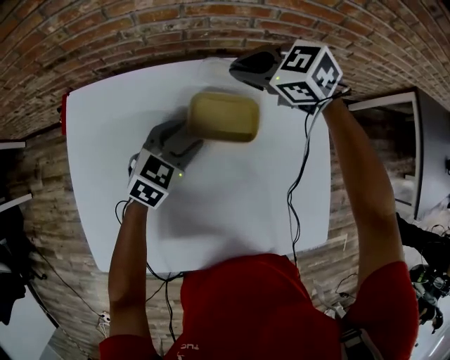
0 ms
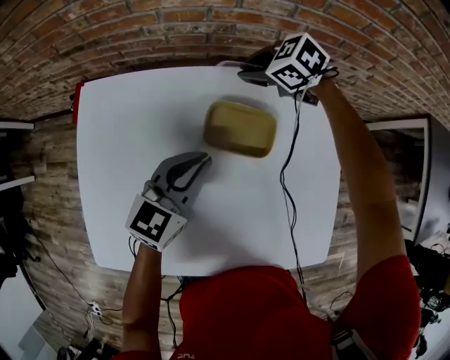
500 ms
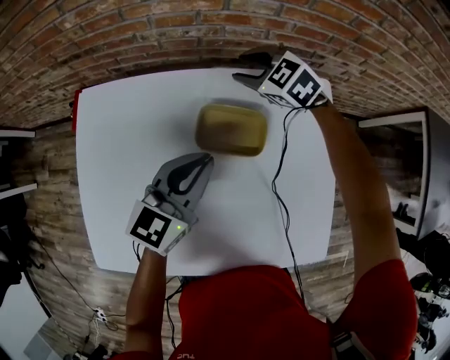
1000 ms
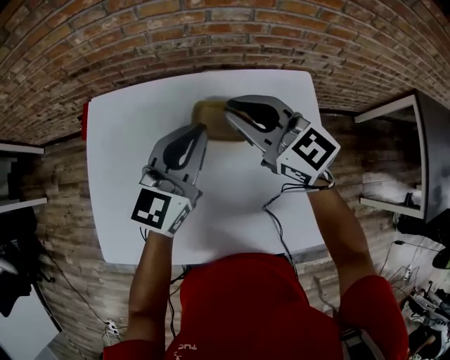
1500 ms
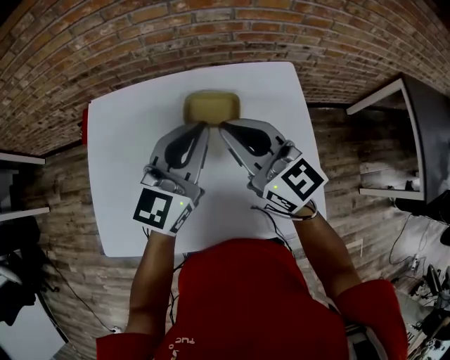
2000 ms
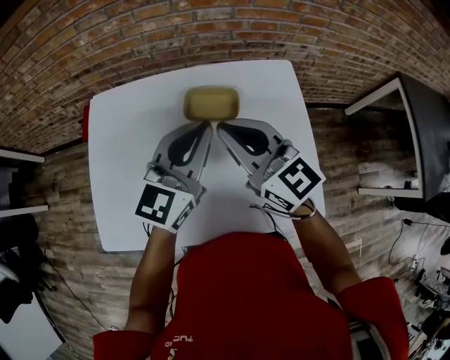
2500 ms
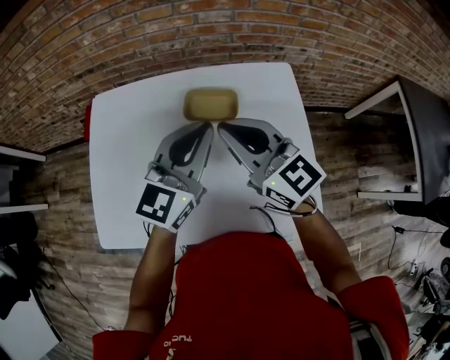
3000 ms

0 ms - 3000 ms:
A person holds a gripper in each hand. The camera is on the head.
0 ms - 1500 ms: The left gripper heads upward, covering about 20 cm, tips its fingers upward by approximately 30 degrees, and closes up. Meanwhile the right gripper heads upward and backward, covering approximately 15 cm, points its fingers some 40 degrees further upward, and opens, then closes again.
1500 ms - 3000 ms: The two grippers go about 10 cm backward.

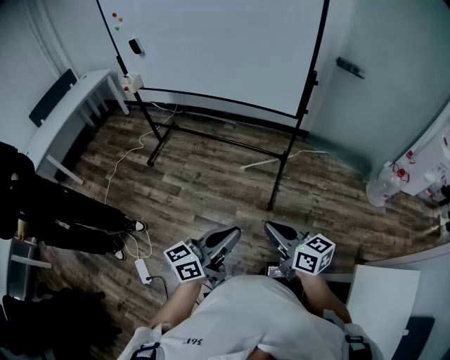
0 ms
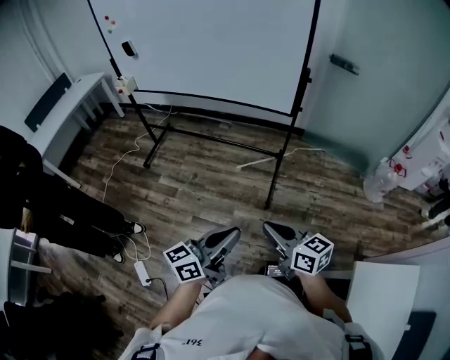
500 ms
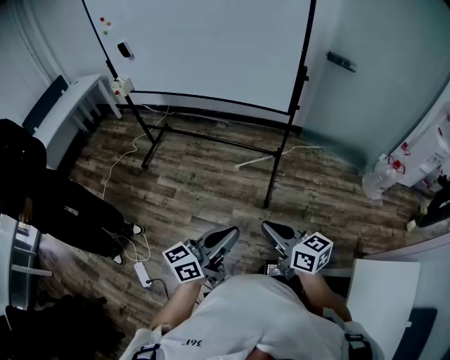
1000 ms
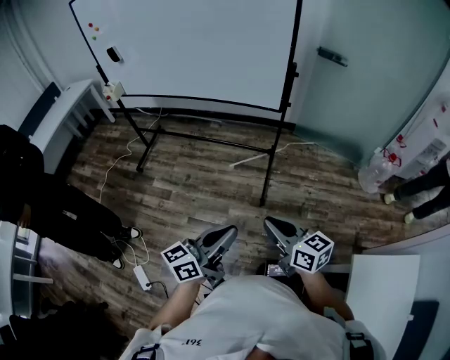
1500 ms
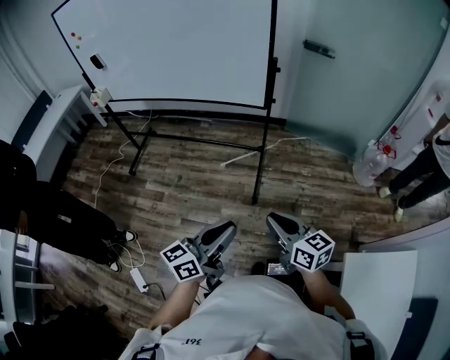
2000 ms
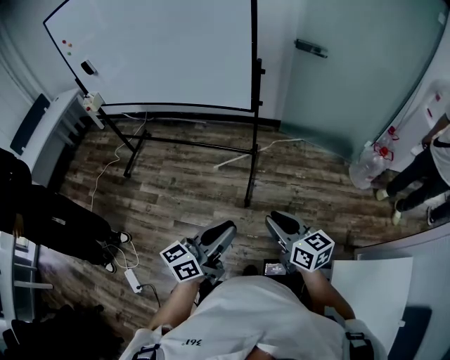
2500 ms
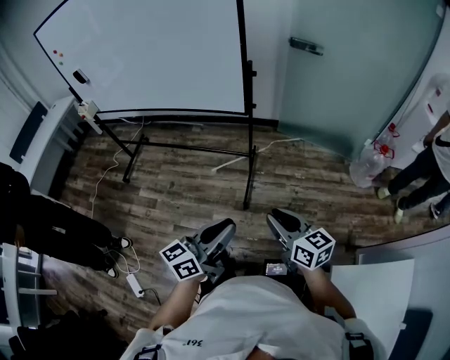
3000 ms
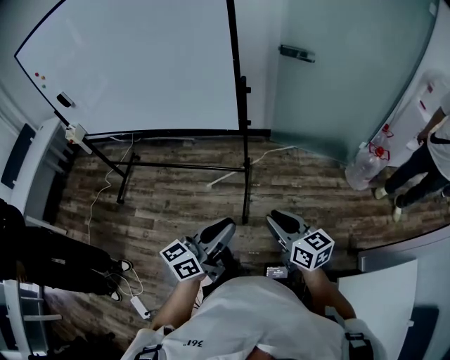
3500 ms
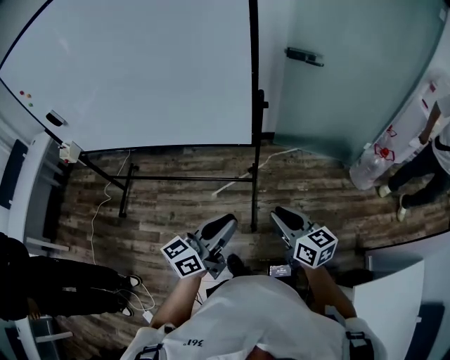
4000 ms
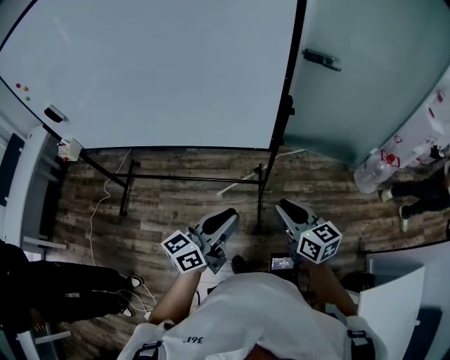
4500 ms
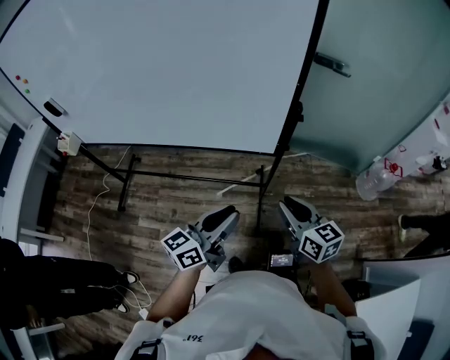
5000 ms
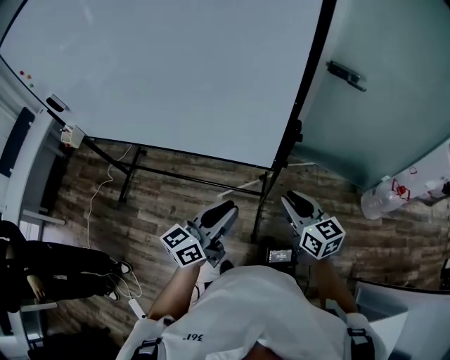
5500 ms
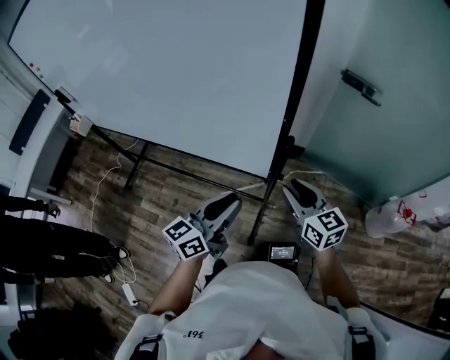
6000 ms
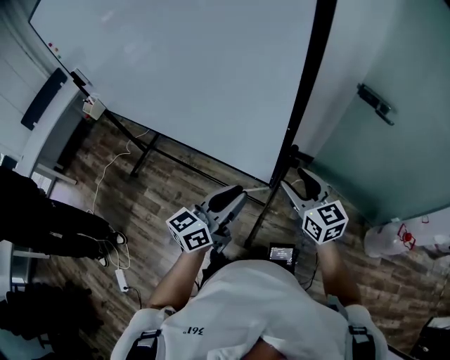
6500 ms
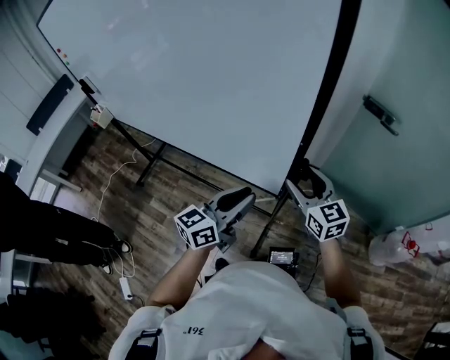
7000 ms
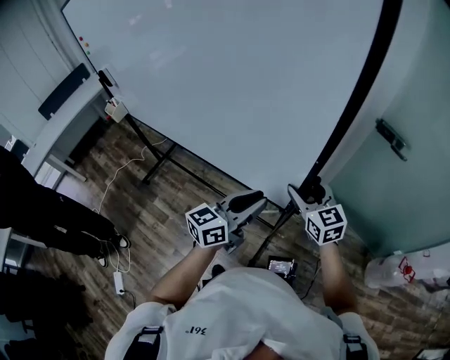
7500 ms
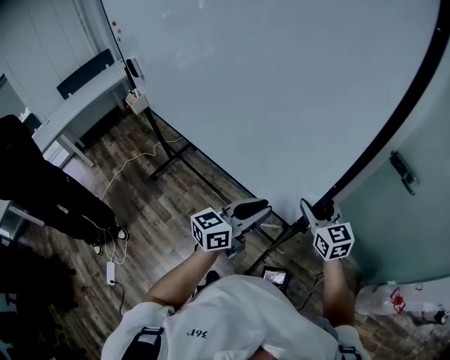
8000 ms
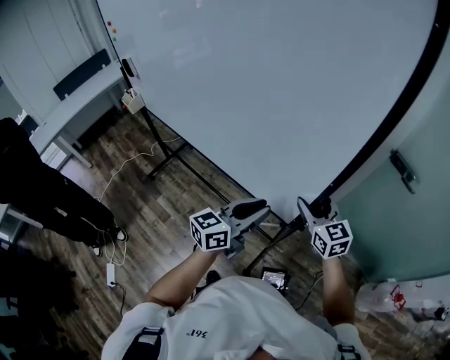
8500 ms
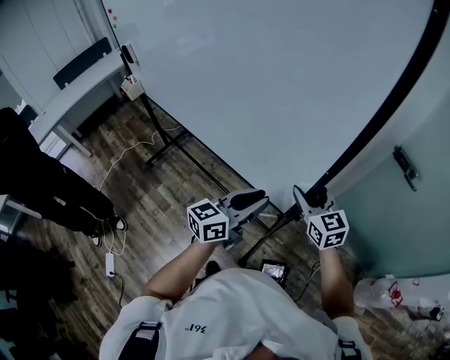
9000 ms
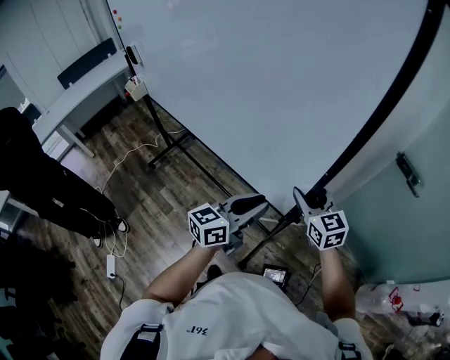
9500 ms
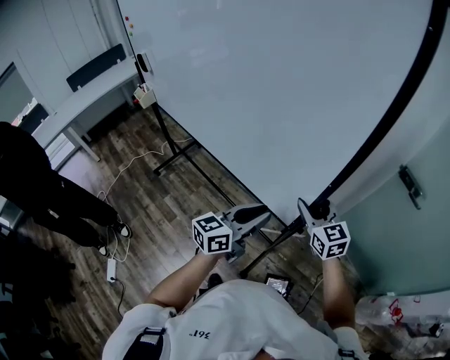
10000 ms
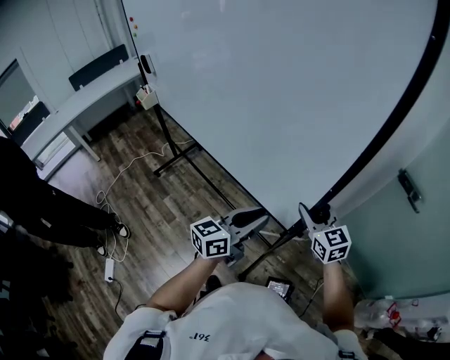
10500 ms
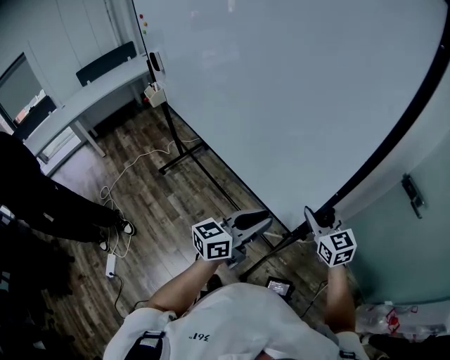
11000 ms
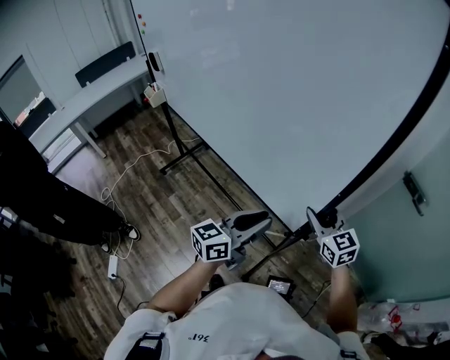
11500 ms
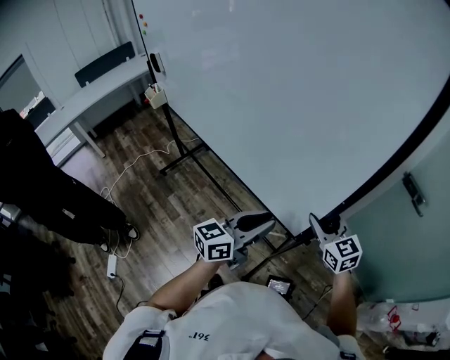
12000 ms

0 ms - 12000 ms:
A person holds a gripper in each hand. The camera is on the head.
0 ms - 2000 ms: The grippers both shift to the right by approximately 10 cm.
2000 ms - 4000 ms: The grippers both shift forward by roughly 30 cm.
4000 ms - 6000 ms: The grippers both shift forward by about 30 cm.
6000 ms - 8000 ms: The right gripper goes roughly 15 cm forward and to the left, while the left gripper heads forward, covering approximately 5 cm.
8000 ms - 10000 ms: The right gripper goes about 5 cm to the left.
10000 ms - 12000 ms: There are only small adjustments of the grippers.

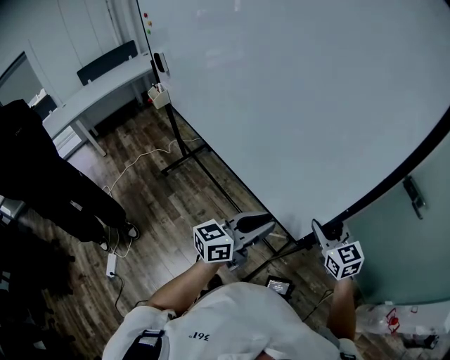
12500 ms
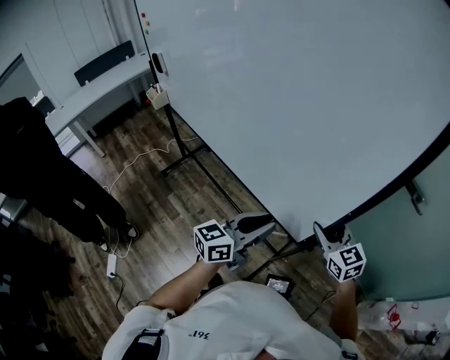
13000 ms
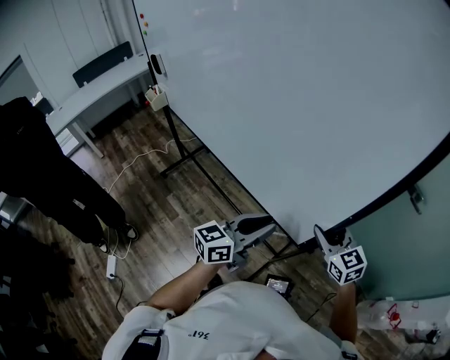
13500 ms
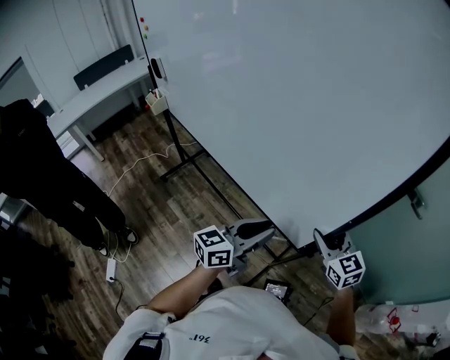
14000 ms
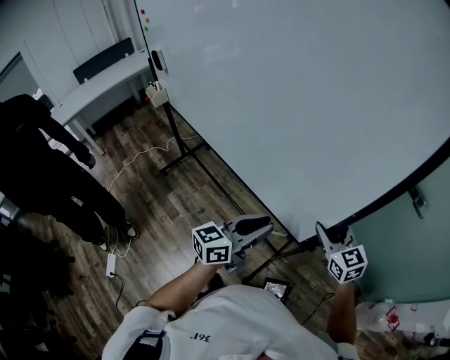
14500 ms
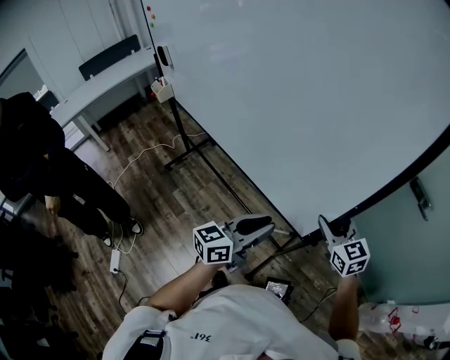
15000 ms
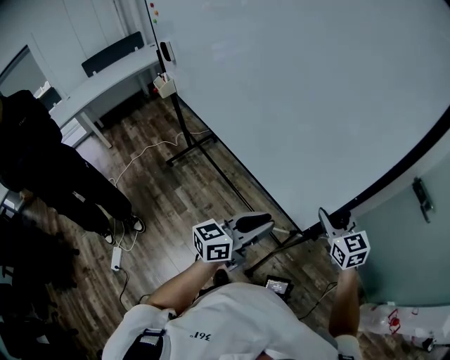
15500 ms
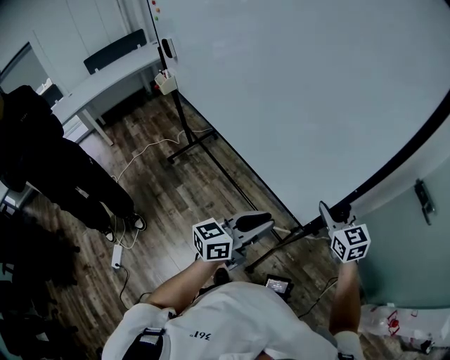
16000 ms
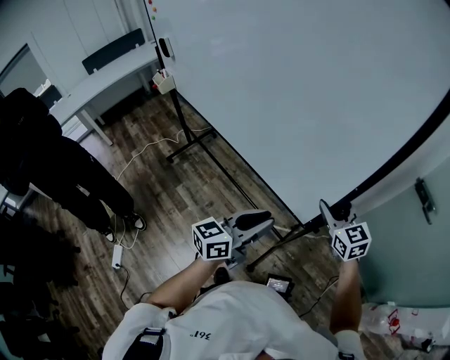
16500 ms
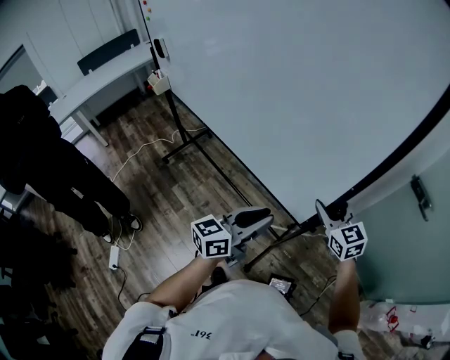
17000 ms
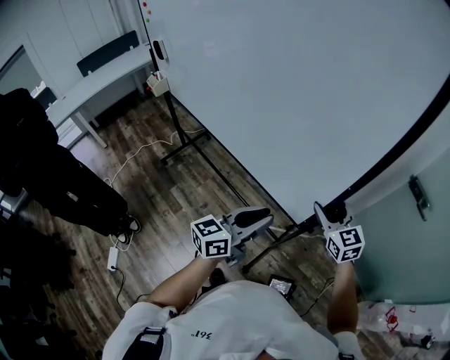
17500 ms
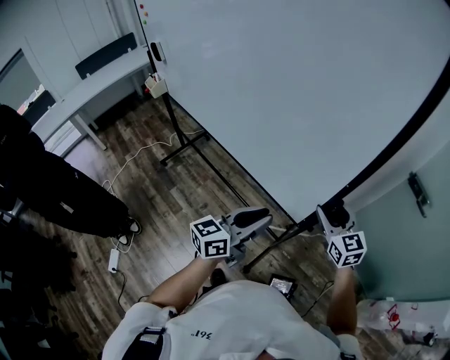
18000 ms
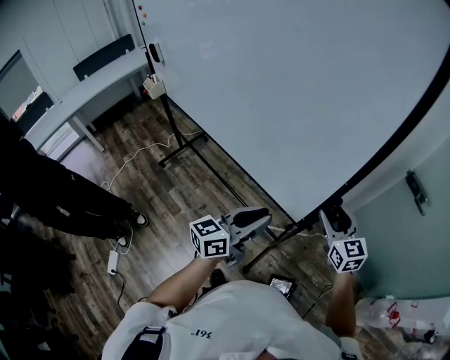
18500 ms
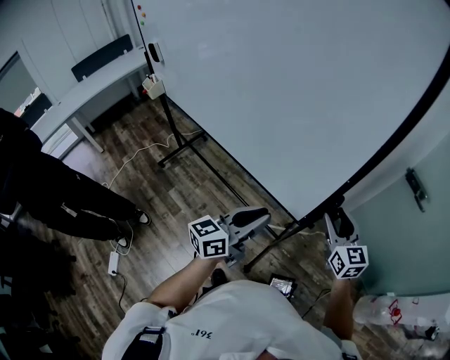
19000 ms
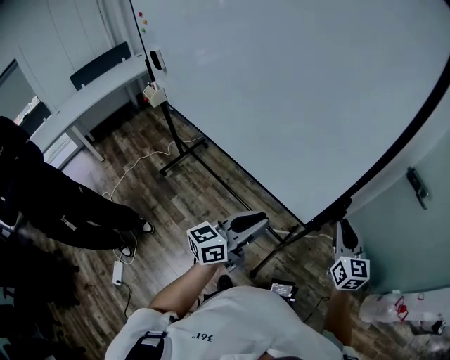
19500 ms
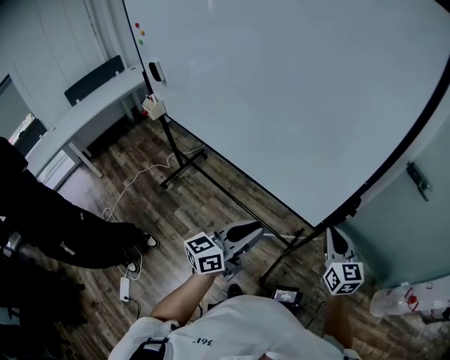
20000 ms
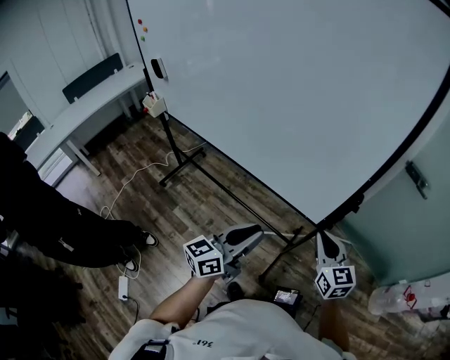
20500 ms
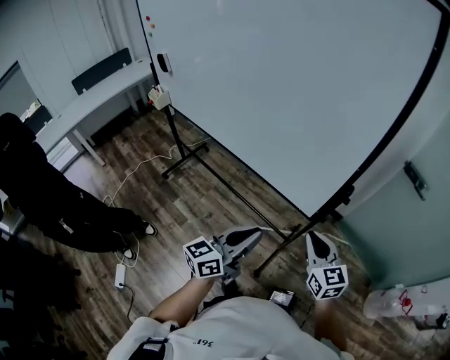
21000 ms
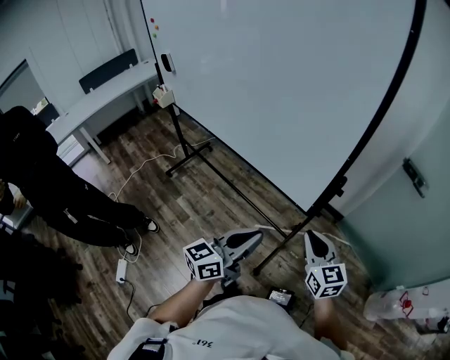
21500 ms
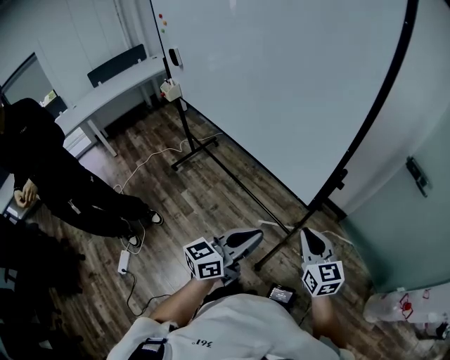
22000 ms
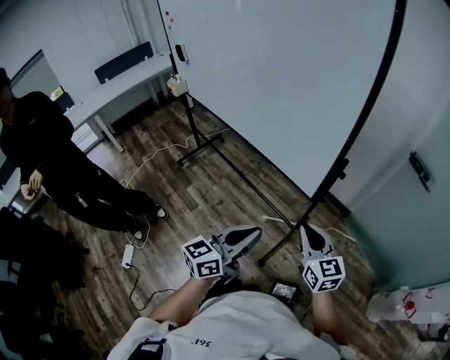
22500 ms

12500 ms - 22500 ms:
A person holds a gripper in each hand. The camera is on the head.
12500 ms - 14500 ms: The grippers move only a little.
14500 ms - 16500 ms: The right gripper shifts about 5 cm forward.
16500 ms - 18500 ms: The right gripper moves approximately 5 cm.
18500 ms - 20500 ms: The left gripper goes some 15 cm to the left and backward; the right gripper goes about 15 cm backward and to the left, and closes up.
20500 ms - 22500 ms: The right gripper heads backward, covering some 10 cm, while the left gripper goes approximately 15 cm backward and to the right.

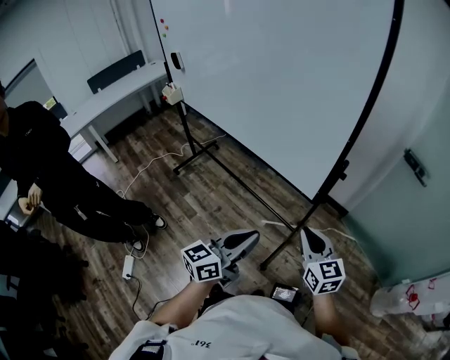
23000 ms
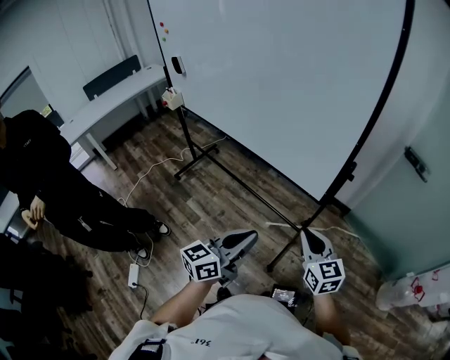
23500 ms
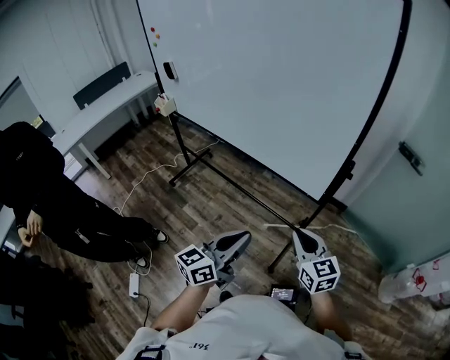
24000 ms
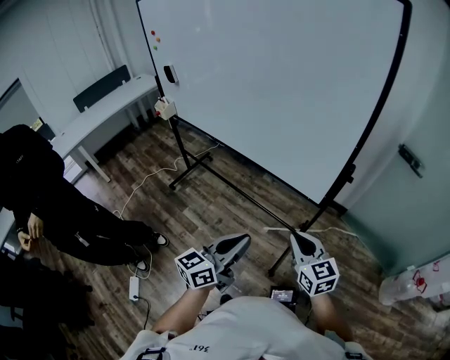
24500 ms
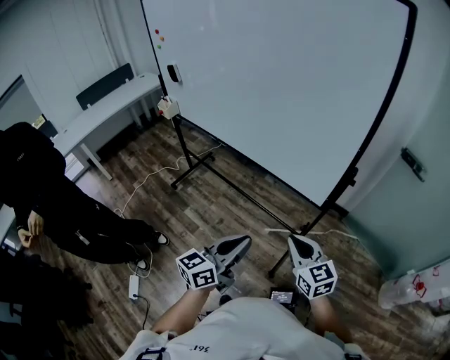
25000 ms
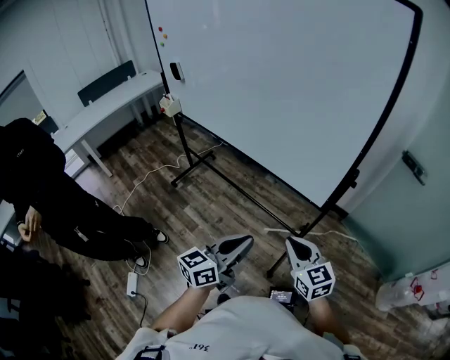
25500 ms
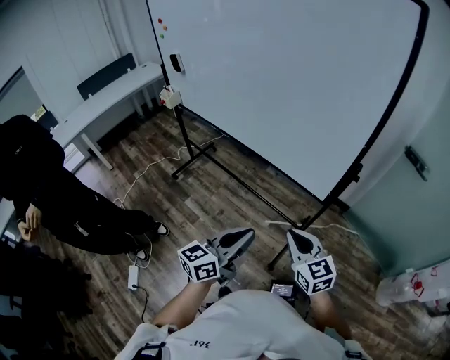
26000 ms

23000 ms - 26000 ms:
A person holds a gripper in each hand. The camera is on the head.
23000 ms - 24500 ms: The two grippers go about 10 cm to the left.
24500 ms - 26000 ms: The grippers stay close to where they were, moving slightly.
